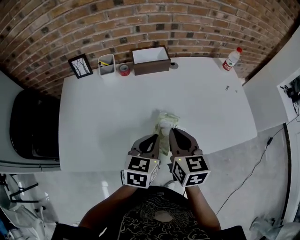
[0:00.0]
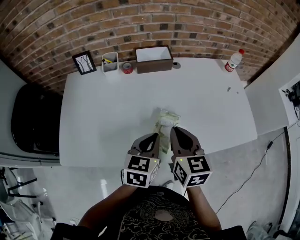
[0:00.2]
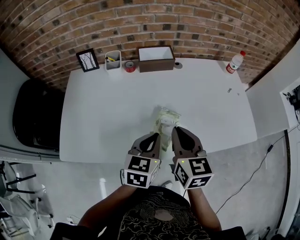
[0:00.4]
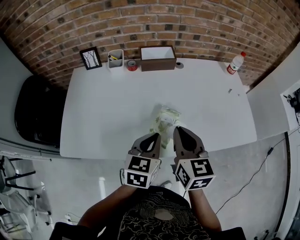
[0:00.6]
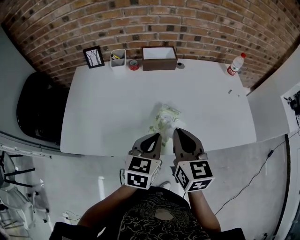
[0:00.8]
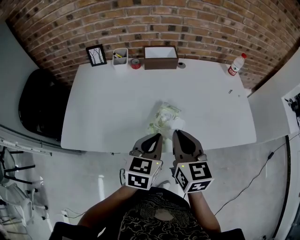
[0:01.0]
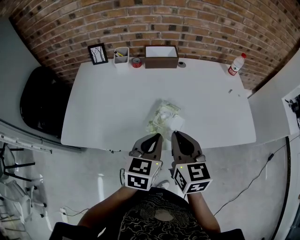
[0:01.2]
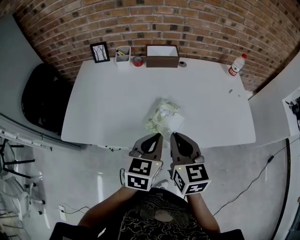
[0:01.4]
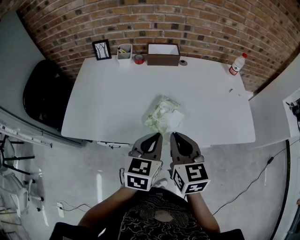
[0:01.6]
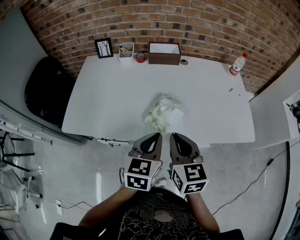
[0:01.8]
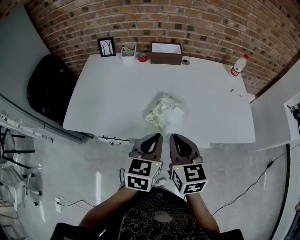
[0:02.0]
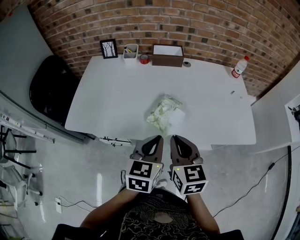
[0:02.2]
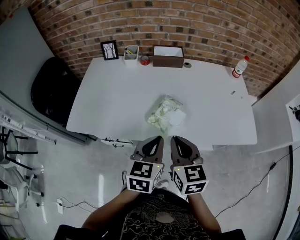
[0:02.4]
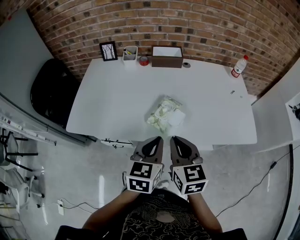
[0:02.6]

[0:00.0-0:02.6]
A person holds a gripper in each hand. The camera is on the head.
0:00.0 to 0:01.2: Both grippers travel together backward, approximately 10 cm.
0:01.2 to 0:02.6: Both grippers travel together backward, approximately 5 cm.

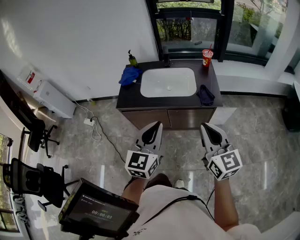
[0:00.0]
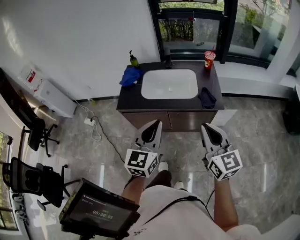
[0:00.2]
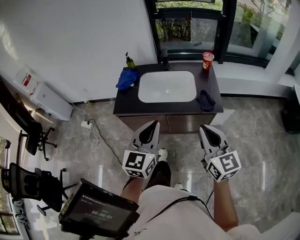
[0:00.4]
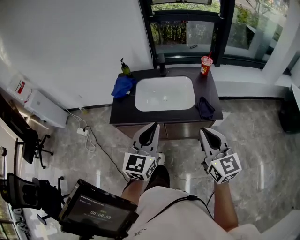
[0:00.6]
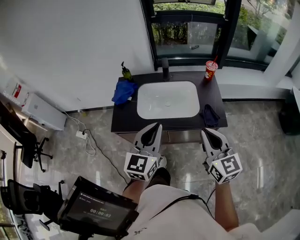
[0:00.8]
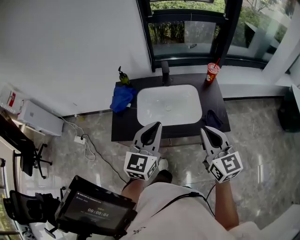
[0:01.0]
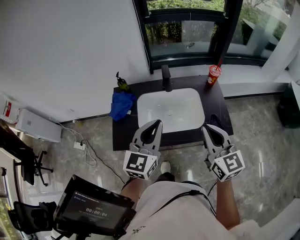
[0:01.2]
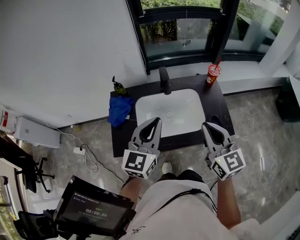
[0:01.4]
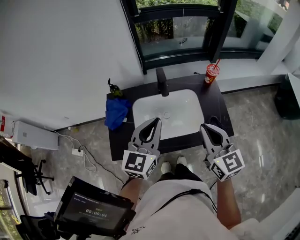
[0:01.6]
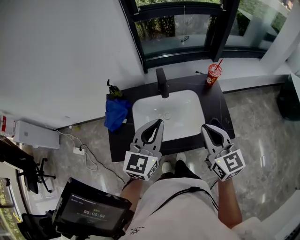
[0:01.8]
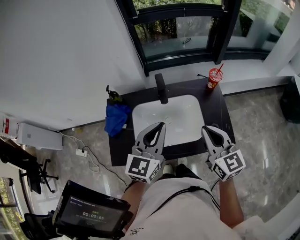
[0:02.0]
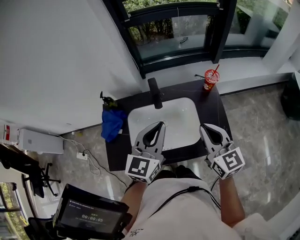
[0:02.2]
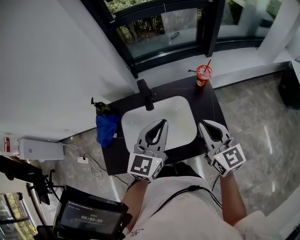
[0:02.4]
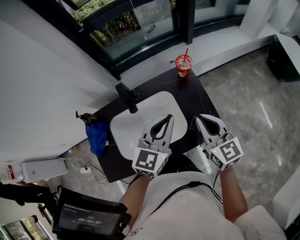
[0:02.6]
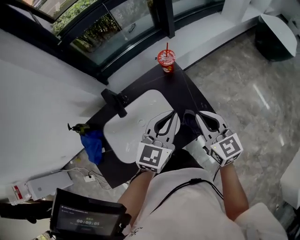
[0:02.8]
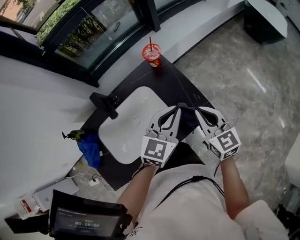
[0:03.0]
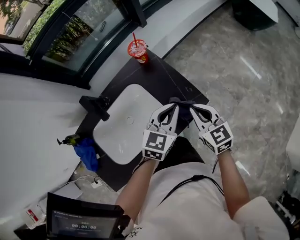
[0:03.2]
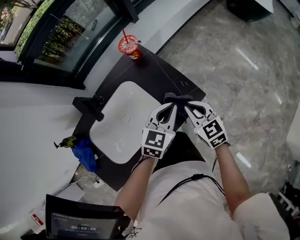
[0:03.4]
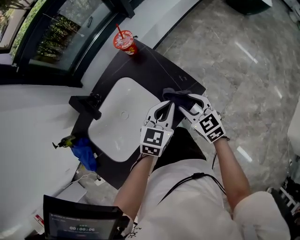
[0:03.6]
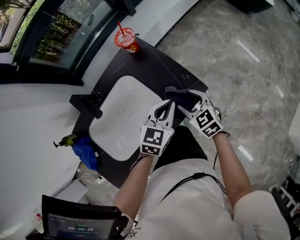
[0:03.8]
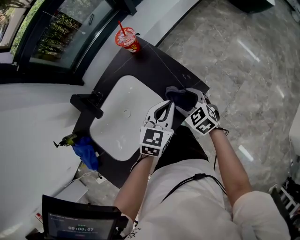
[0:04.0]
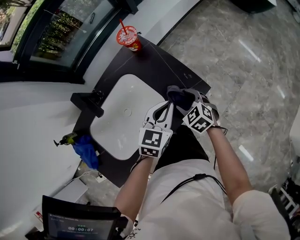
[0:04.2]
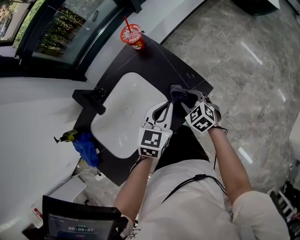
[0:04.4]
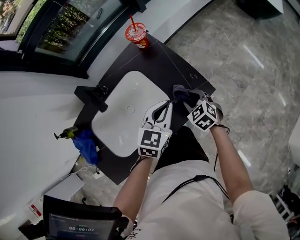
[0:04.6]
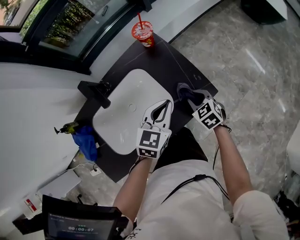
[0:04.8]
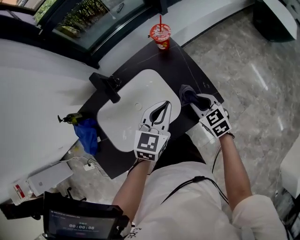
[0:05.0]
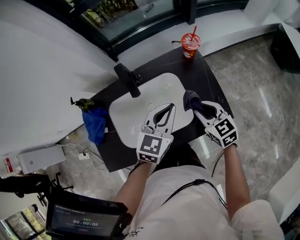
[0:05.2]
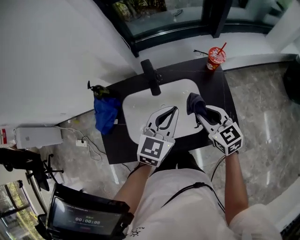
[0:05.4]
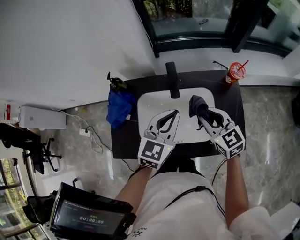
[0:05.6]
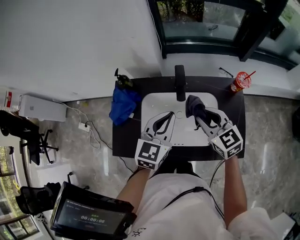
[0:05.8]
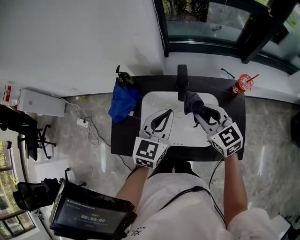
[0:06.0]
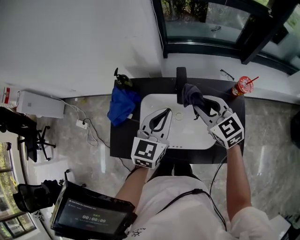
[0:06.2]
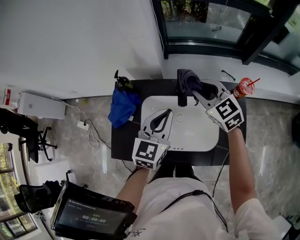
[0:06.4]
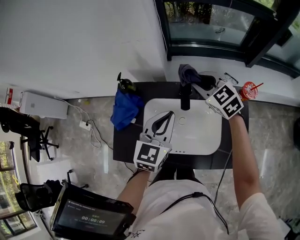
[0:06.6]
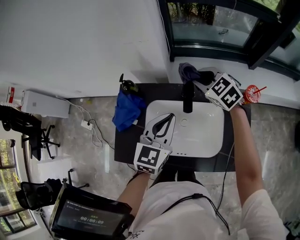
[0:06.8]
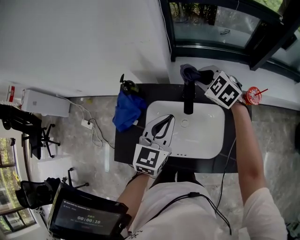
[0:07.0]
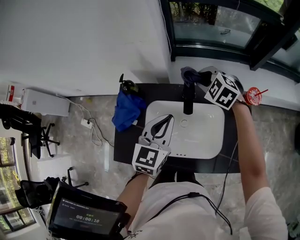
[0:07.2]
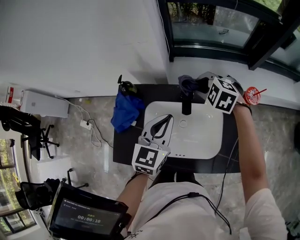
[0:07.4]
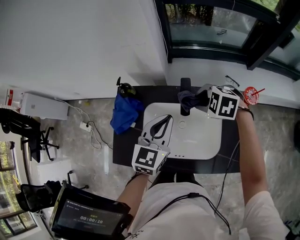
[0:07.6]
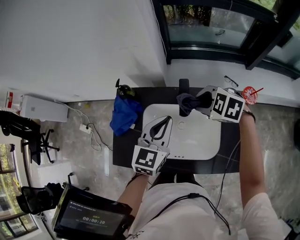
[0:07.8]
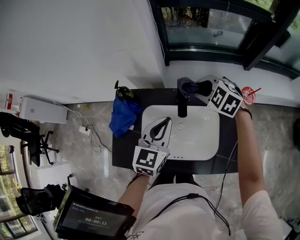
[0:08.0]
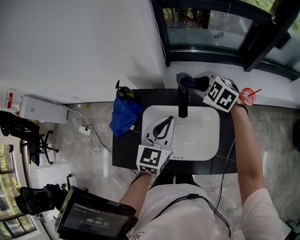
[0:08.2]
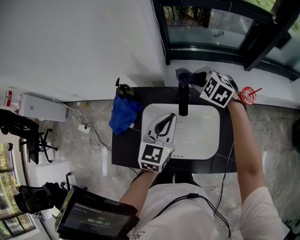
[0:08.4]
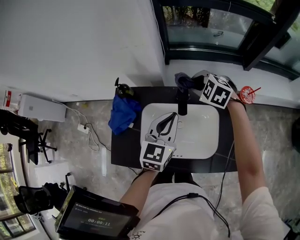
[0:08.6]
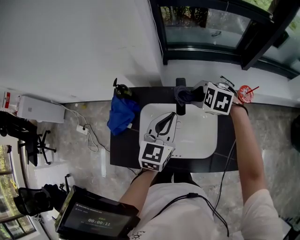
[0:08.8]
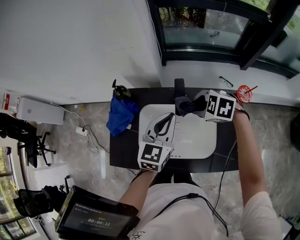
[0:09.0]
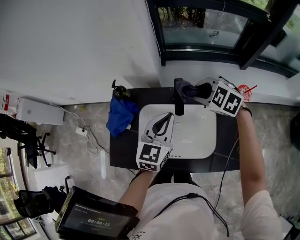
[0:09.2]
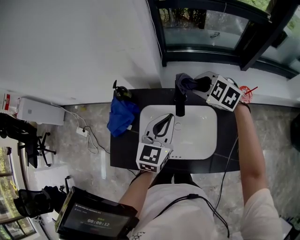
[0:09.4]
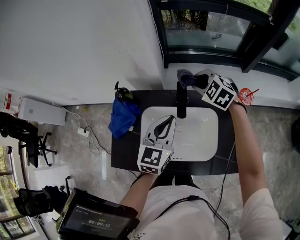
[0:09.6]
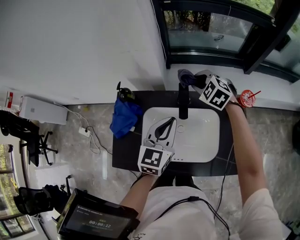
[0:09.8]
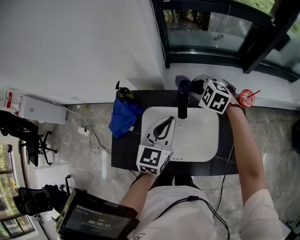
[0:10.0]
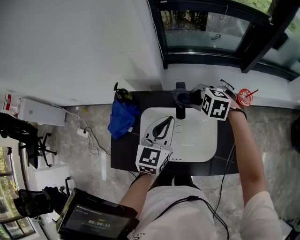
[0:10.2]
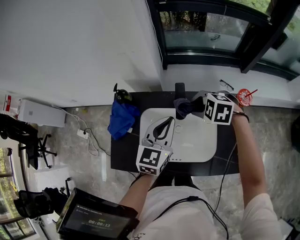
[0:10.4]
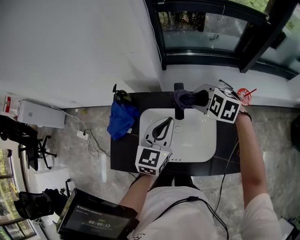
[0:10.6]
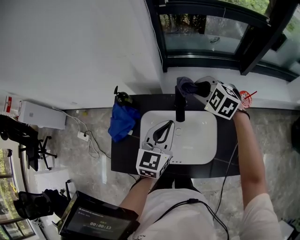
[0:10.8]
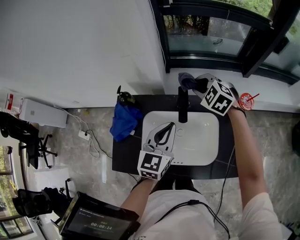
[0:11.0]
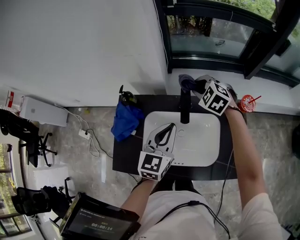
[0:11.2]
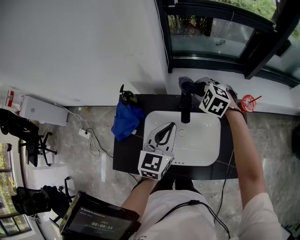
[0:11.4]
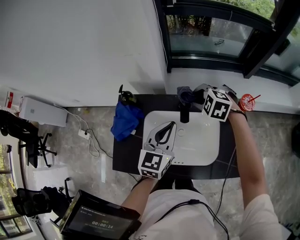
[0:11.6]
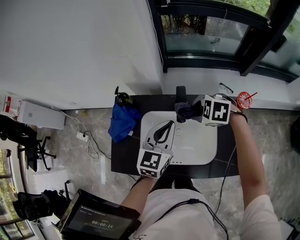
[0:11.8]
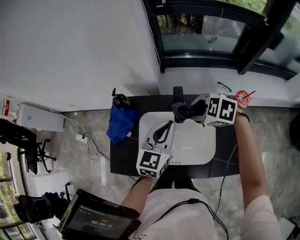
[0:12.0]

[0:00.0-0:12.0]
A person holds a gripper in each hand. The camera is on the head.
0:00.0 to 0:01.6: Both grippers move forward, about 35 cm.
0:01.6 to 0:03.0: The left gripper ends up some 30 cm from where it was, and turns by roughly 40 degrees. The right gripper changes place by about 25 cm, and turns by roughly 30 degrees.
0:03.0 to 0:04.4: The left gripper shifts approximately 10 cm downward. The right gripper shifts approximately 20 cm downward, points its fingers roughly 30 degrees further downward, and opens its fingers.
0:04.4 to 0:06.0: The left gripper changes place by approximately 30 cm, and turns by some 50 degrees; the right gripper changes place by some 35 cm, and turns by some 50 degrees.
0:06.0 to 0:07.6: The right gripper heads forward, covering some 10 cm, and tilts its fingers about 40 degrees downward.
0:07.6 to 0:09.0: The right gripper reaches some 10 cm forward, then returns.
0:09.0 to 0:10.4: The right gripper goes forward and returns, some 10 cm each way.
0:10.4 to 0:12.0: The right gripper goes forward and returns, about 10 cm each way.

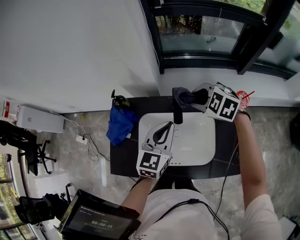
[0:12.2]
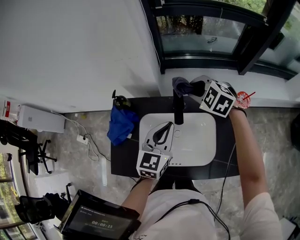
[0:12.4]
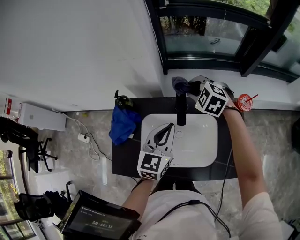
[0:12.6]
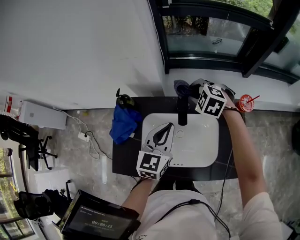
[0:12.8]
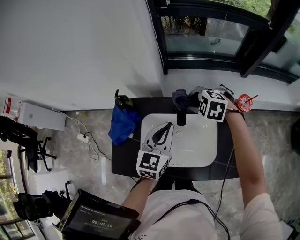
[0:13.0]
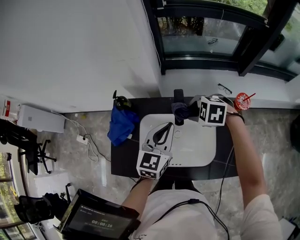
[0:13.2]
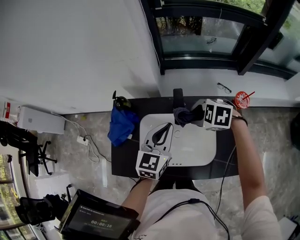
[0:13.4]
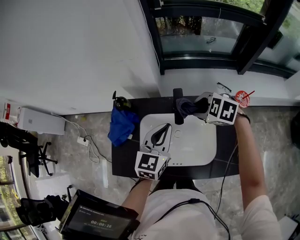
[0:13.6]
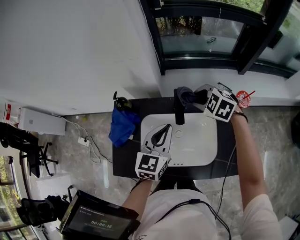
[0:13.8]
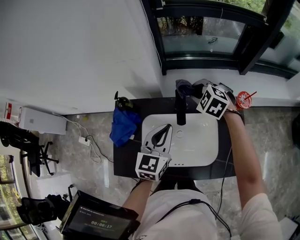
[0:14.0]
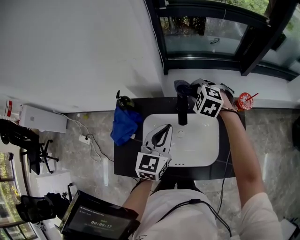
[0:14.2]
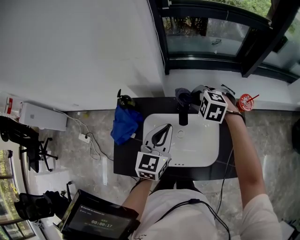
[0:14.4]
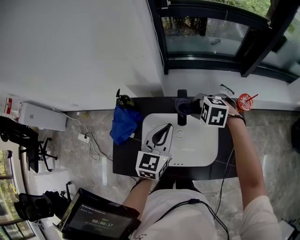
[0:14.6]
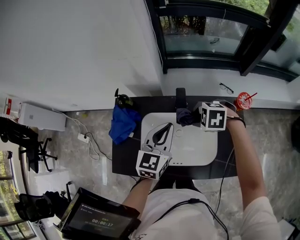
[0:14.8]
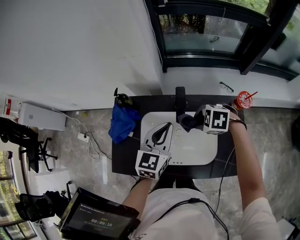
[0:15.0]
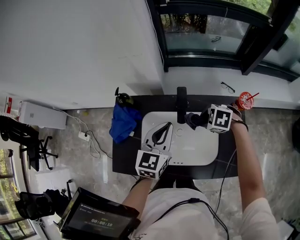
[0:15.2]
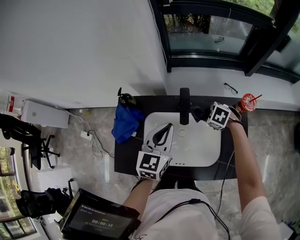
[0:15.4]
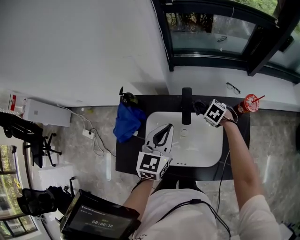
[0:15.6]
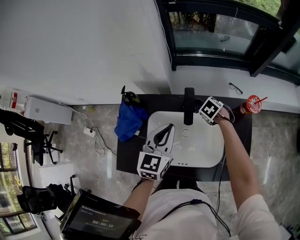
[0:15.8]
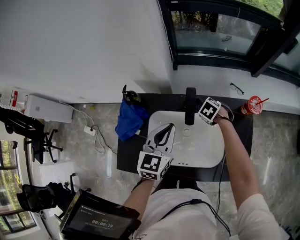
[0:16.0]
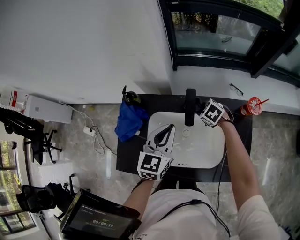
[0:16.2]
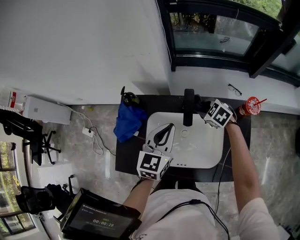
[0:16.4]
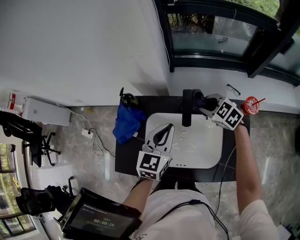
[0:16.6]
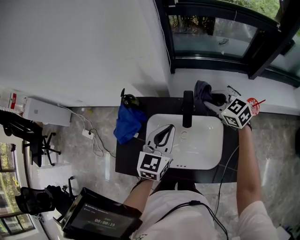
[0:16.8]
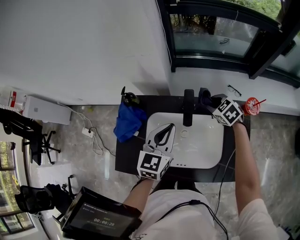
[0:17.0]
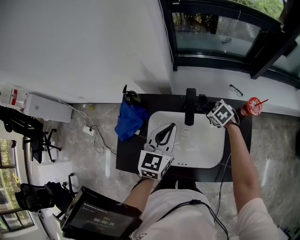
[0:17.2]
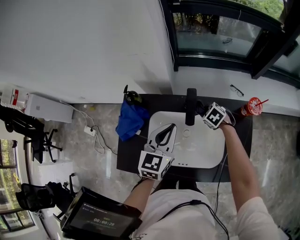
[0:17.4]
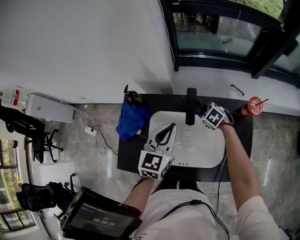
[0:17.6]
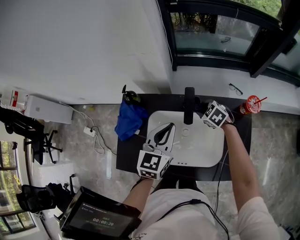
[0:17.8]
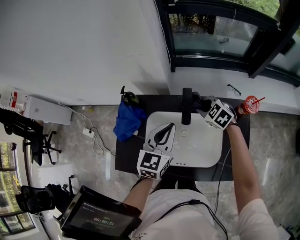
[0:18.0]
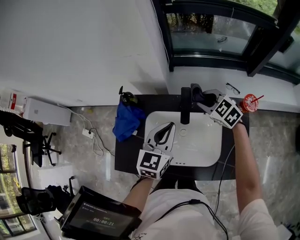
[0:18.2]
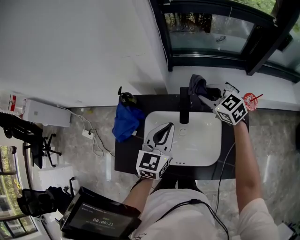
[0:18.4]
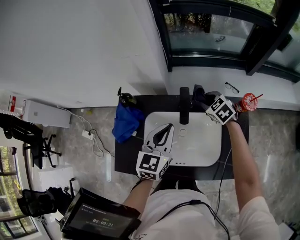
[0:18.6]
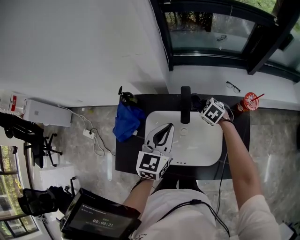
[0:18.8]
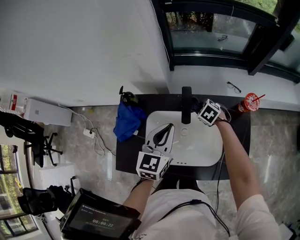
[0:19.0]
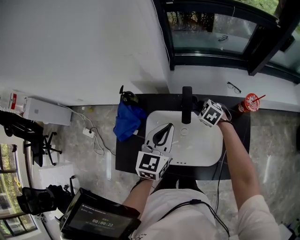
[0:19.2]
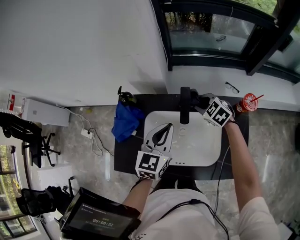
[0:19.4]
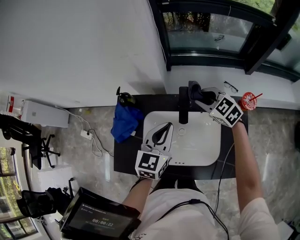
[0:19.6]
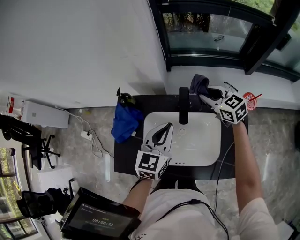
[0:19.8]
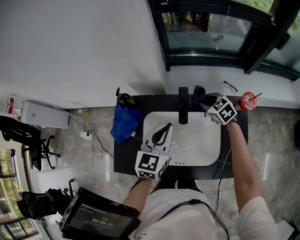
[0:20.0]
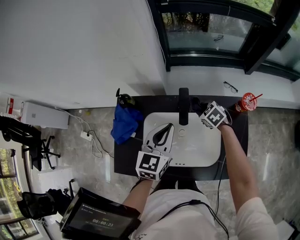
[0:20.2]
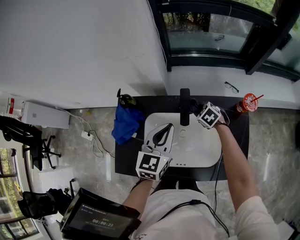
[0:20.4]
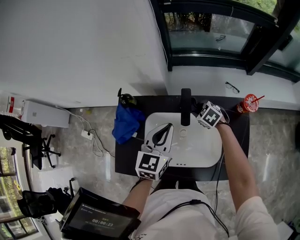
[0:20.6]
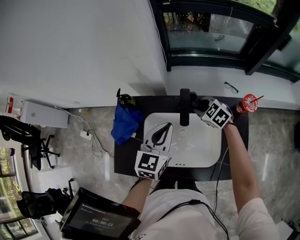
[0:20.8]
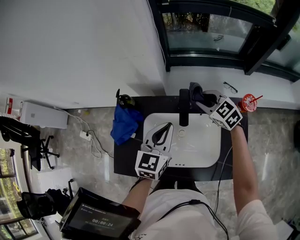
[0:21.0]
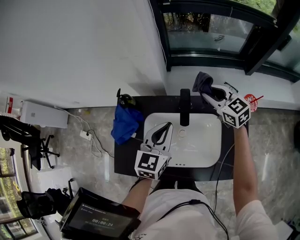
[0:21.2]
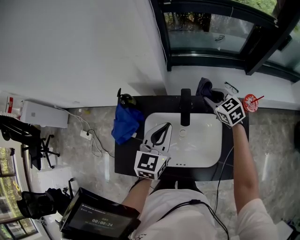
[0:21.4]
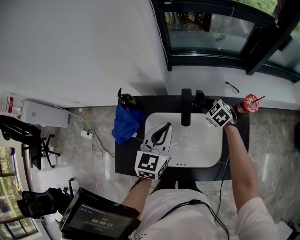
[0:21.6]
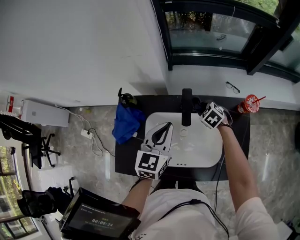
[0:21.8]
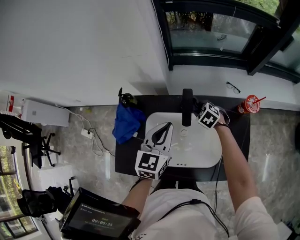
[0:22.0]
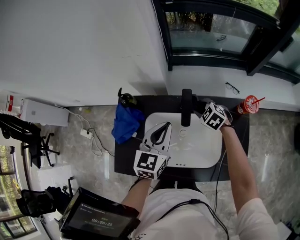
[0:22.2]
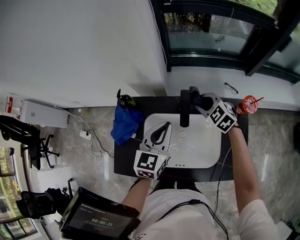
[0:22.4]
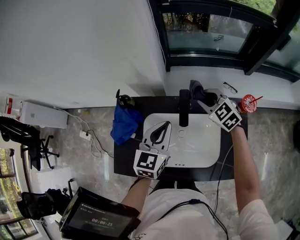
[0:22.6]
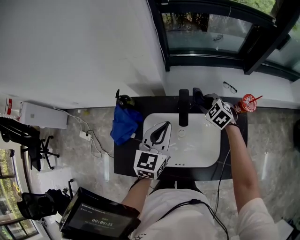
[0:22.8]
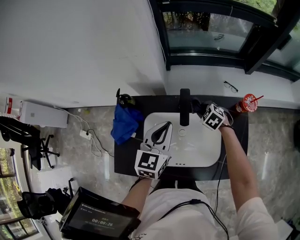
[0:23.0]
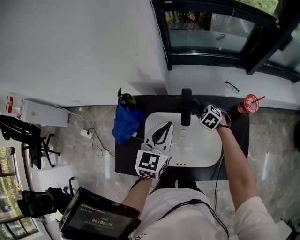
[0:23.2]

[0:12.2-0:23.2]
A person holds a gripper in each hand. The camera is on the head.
0:12.2 to 0:13.8: The right gripper moves forward and backward over approximately 10 cm, changing direction 2 times.
0:13.8 to 0:15.4: The right gripper heads downward, covering approximately 15 cm, and changes its angle by roughly 20 degrees.
0:15.4 to 0:17.0: The right gripper moves up and down over some 20 cm, changing direction 2 times, and turns by some 20 degrees.
0:17.0 to 0:18.4: The right gripper is displaced upward by approximately 10 cm, and swivels approximately 20 degrees.
0:18.4 to 0:20.0: The right gripper swings up and down, roughly 15 cm each way, with 2 reversals.
0:20.0 to 0:21.6: The right gripper goes up and down, roughly 20 cm each way, reversing 2 times.
0:21.6 to 0:23.2: The right gripper swings up and down, roughly 15 cm each way, with 2 reversals.
